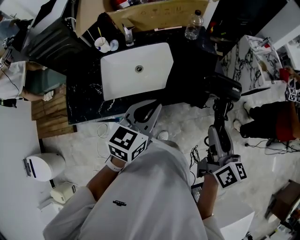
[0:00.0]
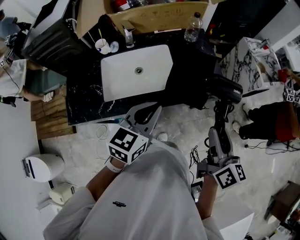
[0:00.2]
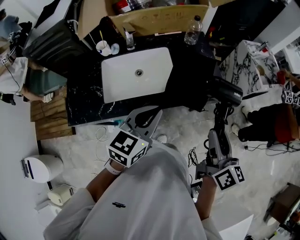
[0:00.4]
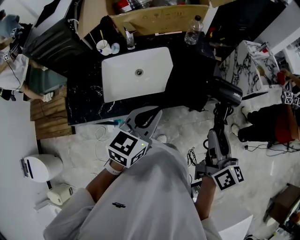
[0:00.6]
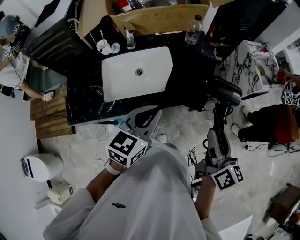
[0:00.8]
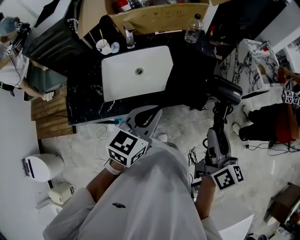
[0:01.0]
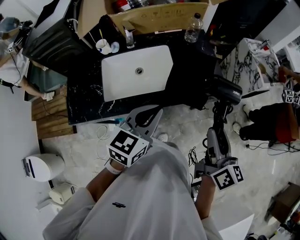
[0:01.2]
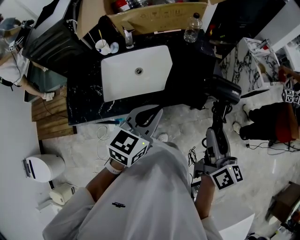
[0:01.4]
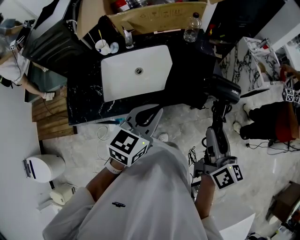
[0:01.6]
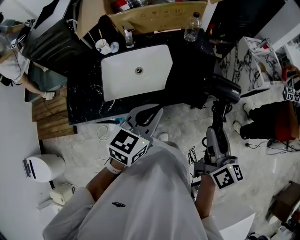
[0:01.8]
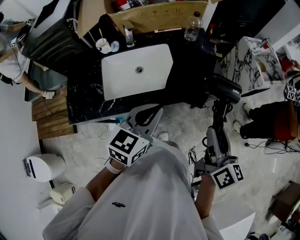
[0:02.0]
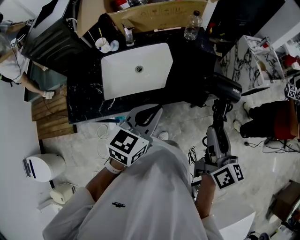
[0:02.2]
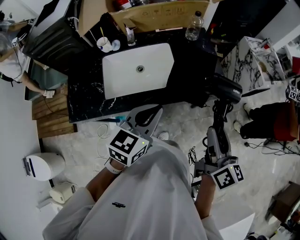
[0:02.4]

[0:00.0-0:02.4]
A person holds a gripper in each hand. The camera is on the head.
0:00.0 to 0:01.2: The grippers make only small movements.
0:01.2 to 0:02.4: Both grippers stay about where they are.

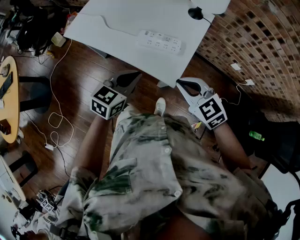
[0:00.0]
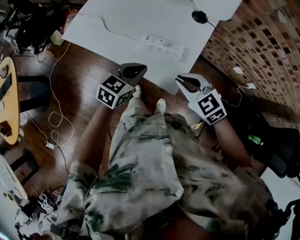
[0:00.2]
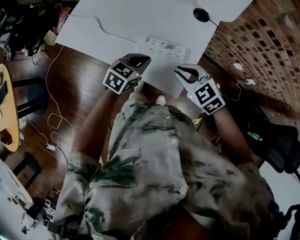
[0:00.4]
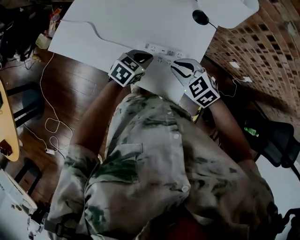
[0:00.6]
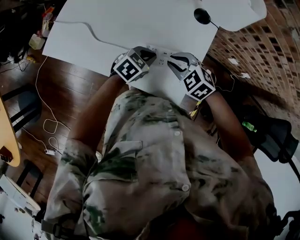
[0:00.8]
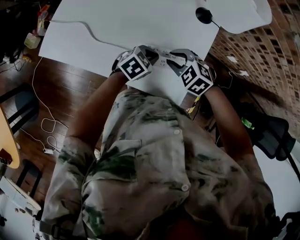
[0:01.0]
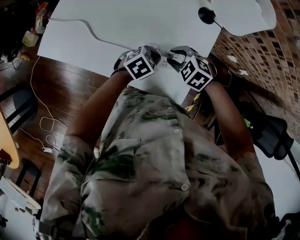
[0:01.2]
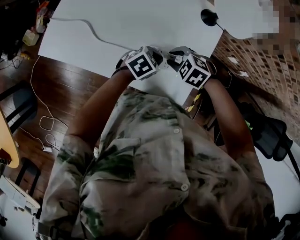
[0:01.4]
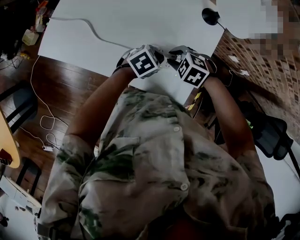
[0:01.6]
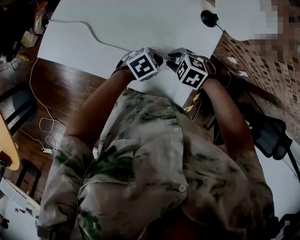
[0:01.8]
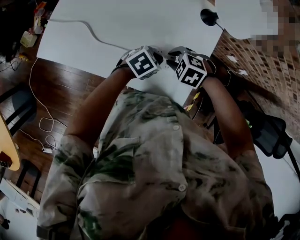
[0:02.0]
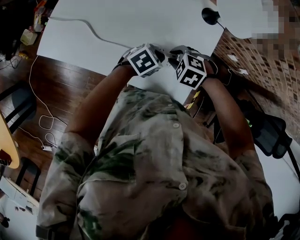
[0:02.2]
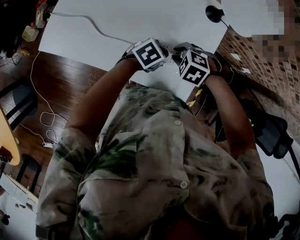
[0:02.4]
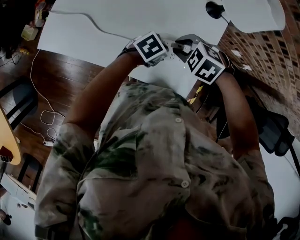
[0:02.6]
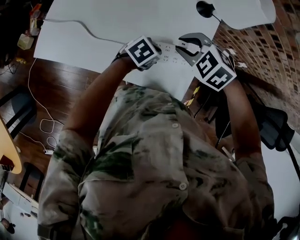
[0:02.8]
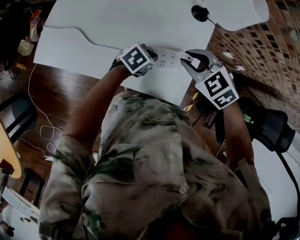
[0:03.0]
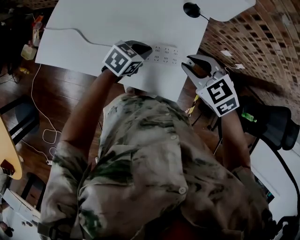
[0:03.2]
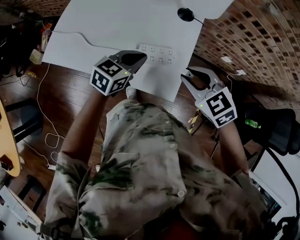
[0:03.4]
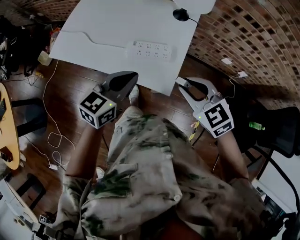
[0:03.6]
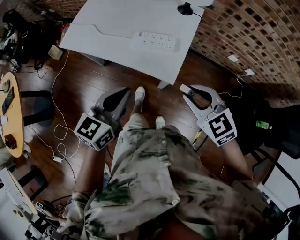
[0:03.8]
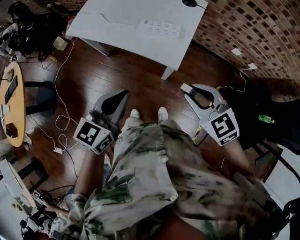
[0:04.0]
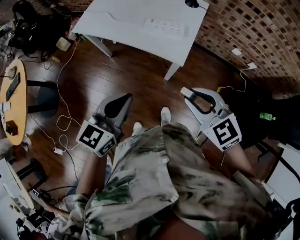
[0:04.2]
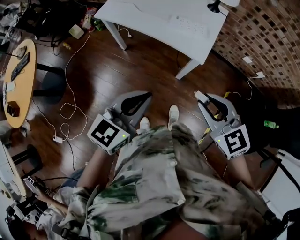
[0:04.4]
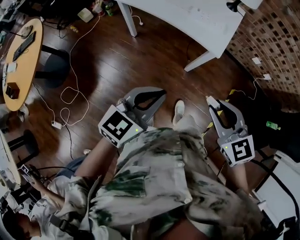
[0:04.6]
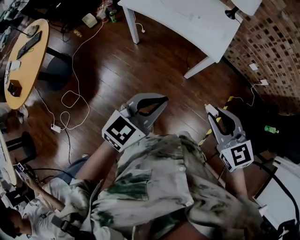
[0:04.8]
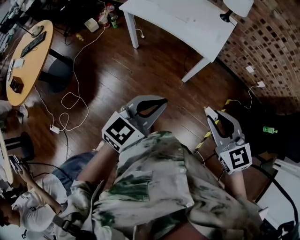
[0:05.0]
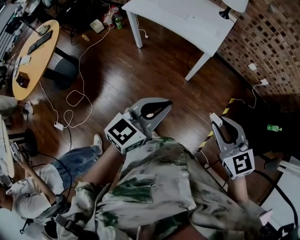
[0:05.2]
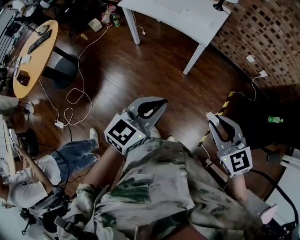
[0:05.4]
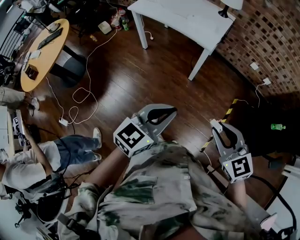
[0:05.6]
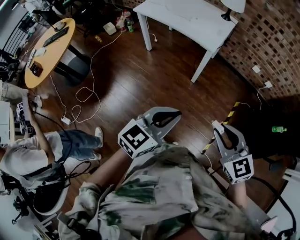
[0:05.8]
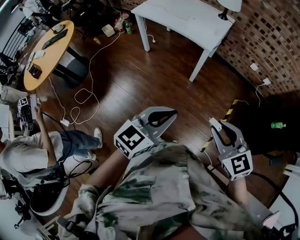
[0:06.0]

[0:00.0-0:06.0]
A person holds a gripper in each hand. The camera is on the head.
0:00.0 to 0:01.6: The right gripper moves some 30 cm, angles its fingers downward, by about 40 degrees, and opens up; the left gripper shifts by about 25 cm, and rotates about 40 degrees.
0:01.6 to 0:03.0: The right gripper travels upward by about 15 cm, and swivels roughly 20 degrees.
0:03.0 to 0:04.4: The two grippers travel together, approximately 40 cm. The left gripper swivels some 50 degrees, while the right gripper points its fingers approximately 30 degrees further upward.
0:04.4 to 0:06.0: Both grippers move backward, roughly 30 cm.

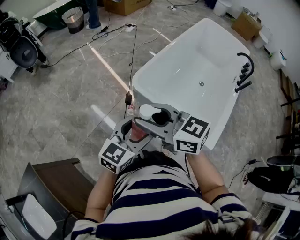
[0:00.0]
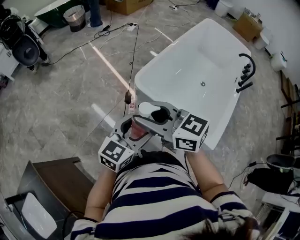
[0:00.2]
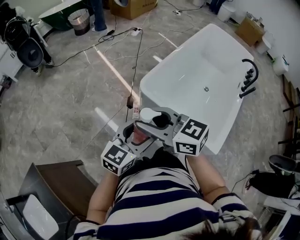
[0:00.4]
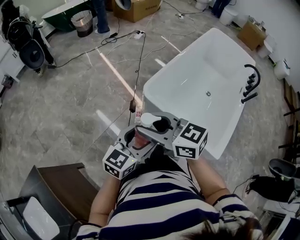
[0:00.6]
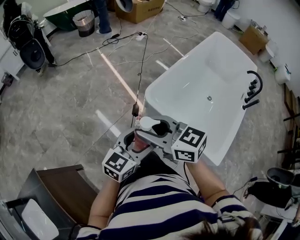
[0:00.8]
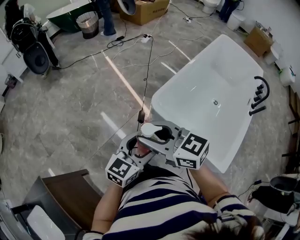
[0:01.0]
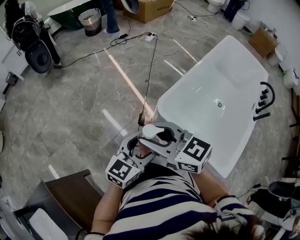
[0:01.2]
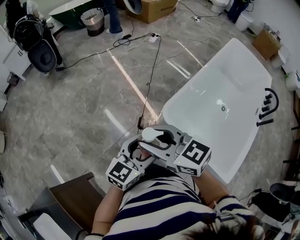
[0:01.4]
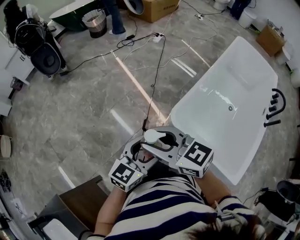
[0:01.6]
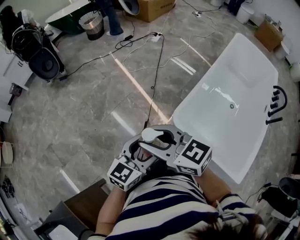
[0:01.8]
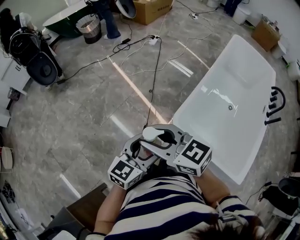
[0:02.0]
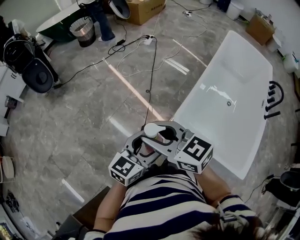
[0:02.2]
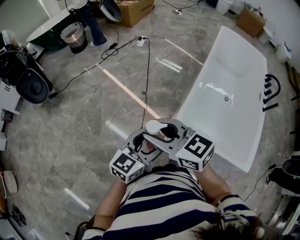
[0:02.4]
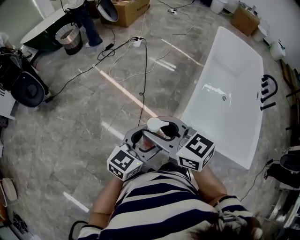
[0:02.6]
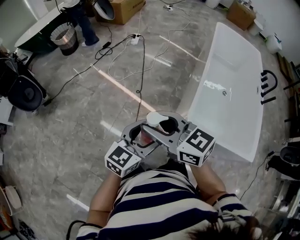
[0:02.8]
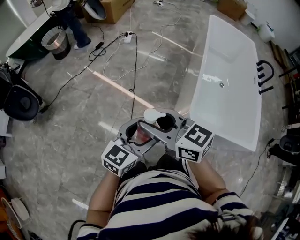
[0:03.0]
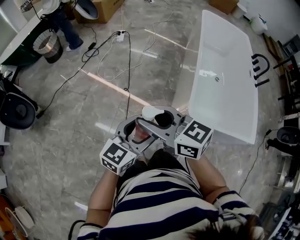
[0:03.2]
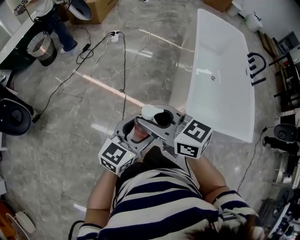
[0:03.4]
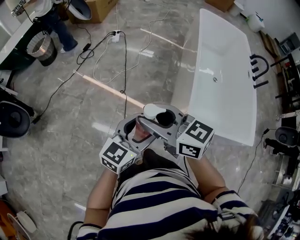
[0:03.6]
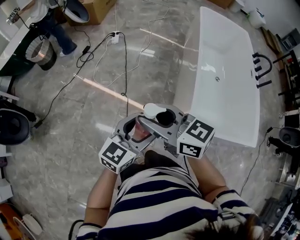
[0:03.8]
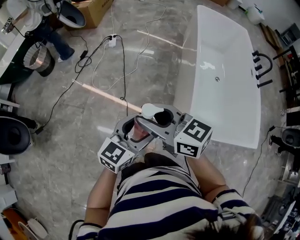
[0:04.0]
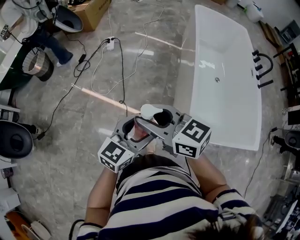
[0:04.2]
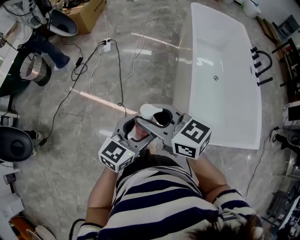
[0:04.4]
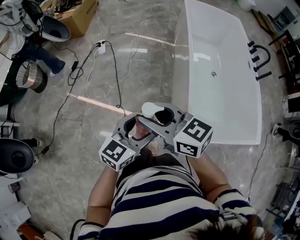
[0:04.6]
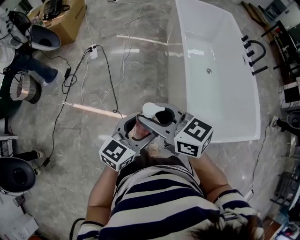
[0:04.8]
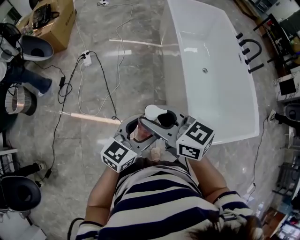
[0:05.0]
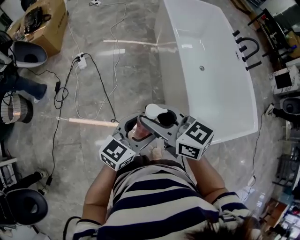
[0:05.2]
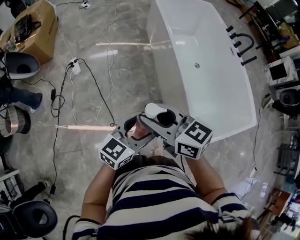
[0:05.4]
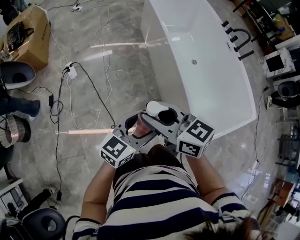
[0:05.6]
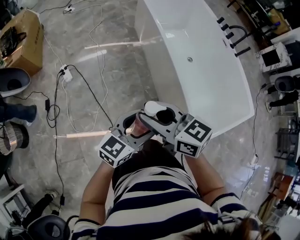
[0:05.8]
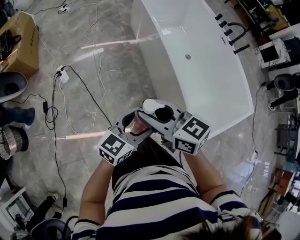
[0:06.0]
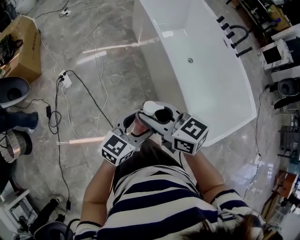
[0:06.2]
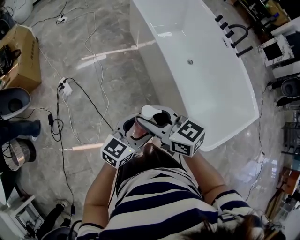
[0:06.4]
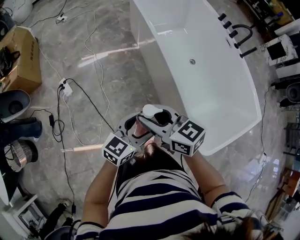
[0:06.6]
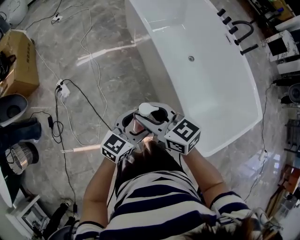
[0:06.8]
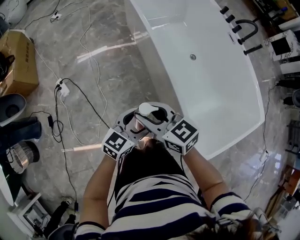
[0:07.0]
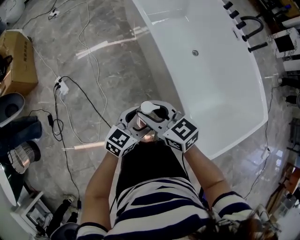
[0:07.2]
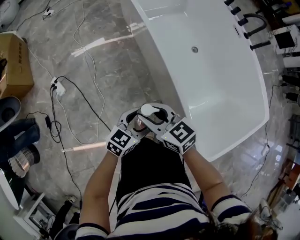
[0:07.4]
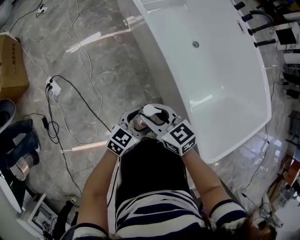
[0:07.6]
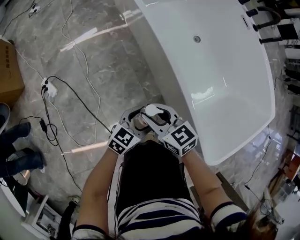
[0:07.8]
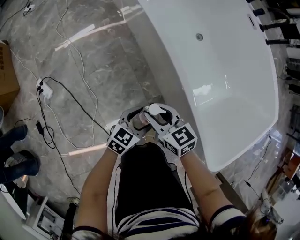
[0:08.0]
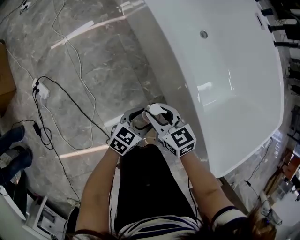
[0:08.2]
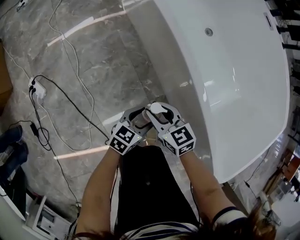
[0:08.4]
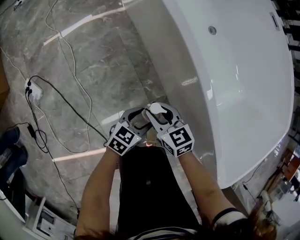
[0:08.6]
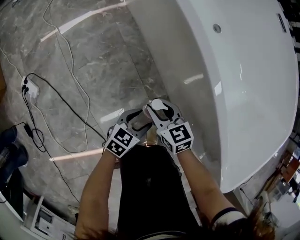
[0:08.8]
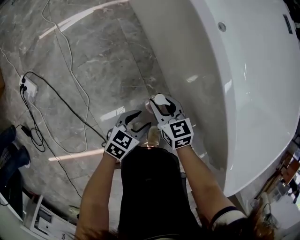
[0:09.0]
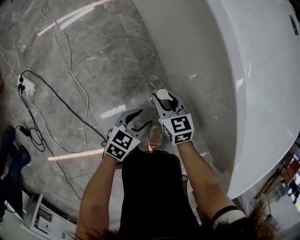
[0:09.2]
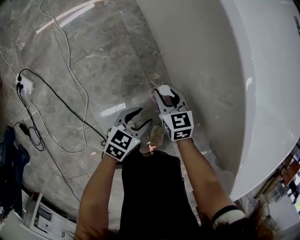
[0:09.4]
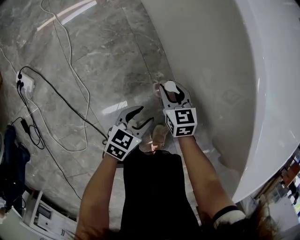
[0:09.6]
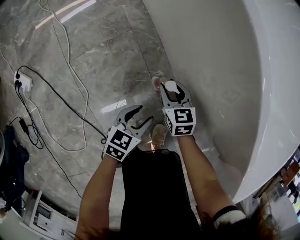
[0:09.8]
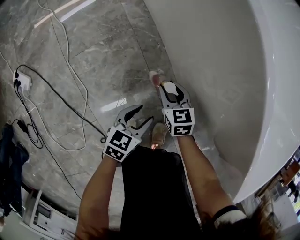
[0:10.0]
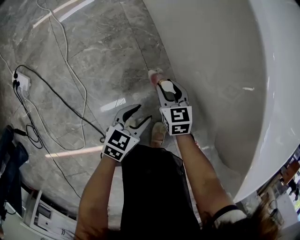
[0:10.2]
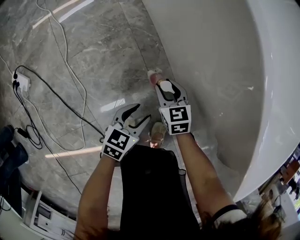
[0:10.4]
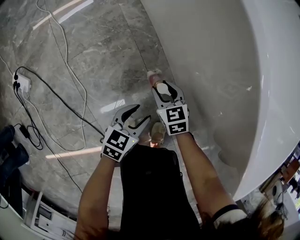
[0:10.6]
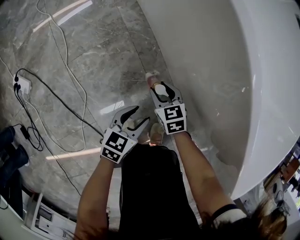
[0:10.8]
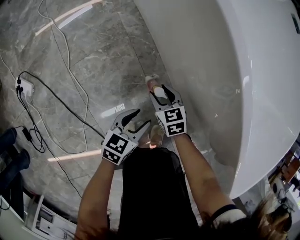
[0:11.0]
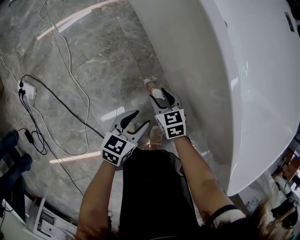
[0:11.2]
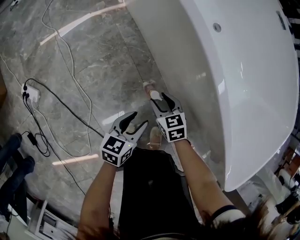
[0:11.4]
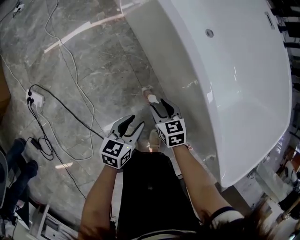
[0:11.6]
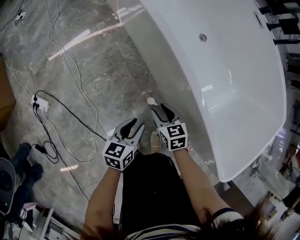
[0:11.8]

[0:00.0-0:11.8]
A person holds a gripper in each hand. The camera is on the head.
0:00.0 to 0:01.4: Both grippers travel together forward and to the left, approximately 20 cm.
0:01.4 to 0:03.0: The left gripper changes place by approximately 30 cm, and changes its angle by some 30 degrees; the right gripper changes place by roughly 30 cm, and swivels some 30 degrees.
0:03.0 to 0:04.4: Both grippers move forward, some 20 cm.
0:04.4 to 0:06.0: The left gripper shifts by some 25 cm, and changes its angle by some 30 degrees, while the right gripper changes place by approximately 25 cm, and turns by some 30 degrees.
0:06.0 to 0:07.4: The left gripper is displaced downward and forward by approximately 25 cm; the right gripper travels forward and downward by approximately 25 cm.
0:07.4 to 0:08.8: The grippers both shift downward by some 35 cm. The right gripper rotates about 20 degrees.
0:08.8 to 0:10.4: The left gripper travels downward by some 5 cm; the right gripper goes about 15 cm downward.
0:10.4 to 0:11.8: The grippers both shift upward by about 20 cm.

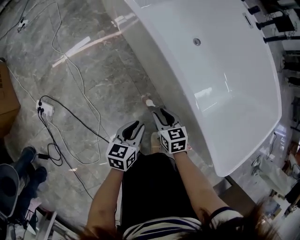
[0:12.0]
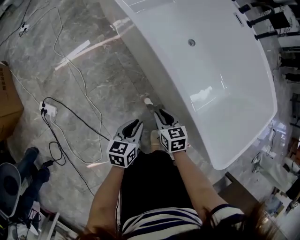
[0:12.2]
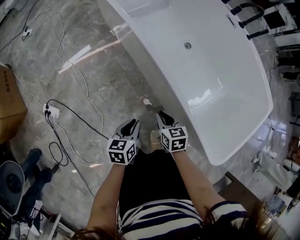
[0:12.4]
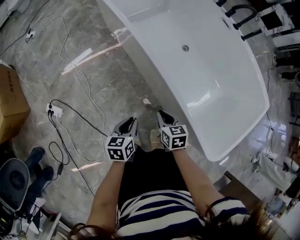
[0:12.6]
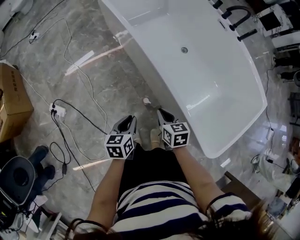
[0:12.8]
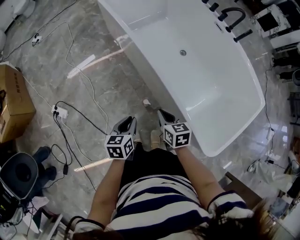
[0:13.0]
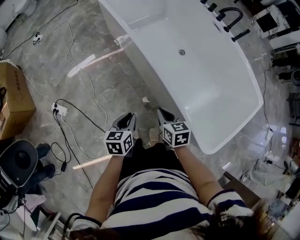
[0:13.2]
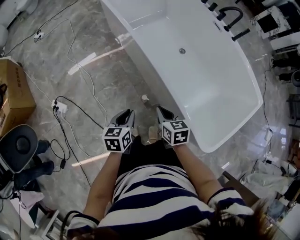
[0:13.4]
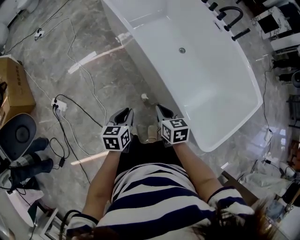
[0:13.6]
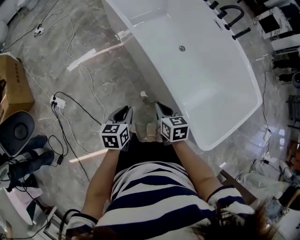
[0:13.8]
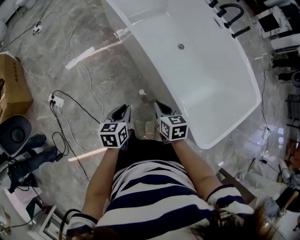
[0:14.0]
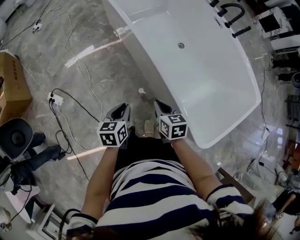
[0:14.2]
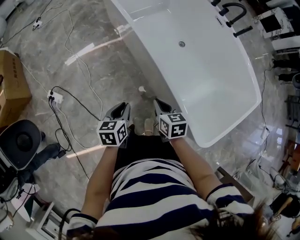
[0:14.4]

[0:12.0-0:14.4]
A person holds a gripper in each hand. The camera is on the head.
0:12.0 to 0:13.2: Both grippers move upward, approximately 20 cm. The right gripper closes up.
0:13.2 to 0:14.4: The two grippers keep their place.

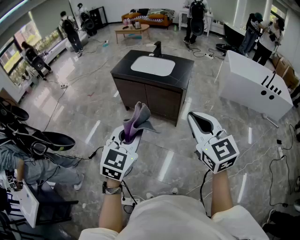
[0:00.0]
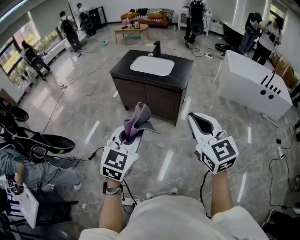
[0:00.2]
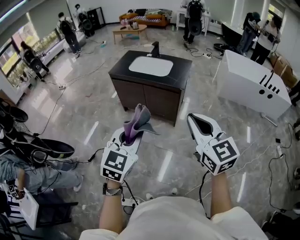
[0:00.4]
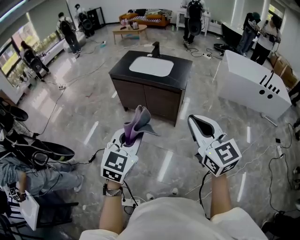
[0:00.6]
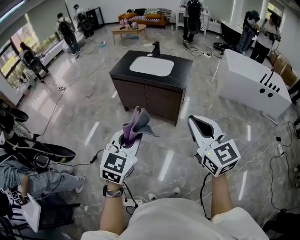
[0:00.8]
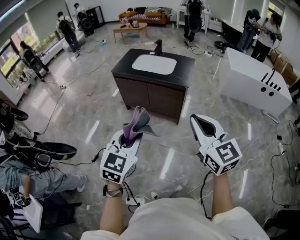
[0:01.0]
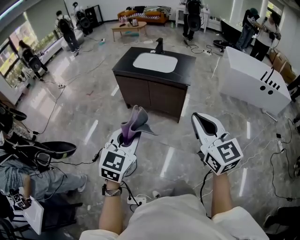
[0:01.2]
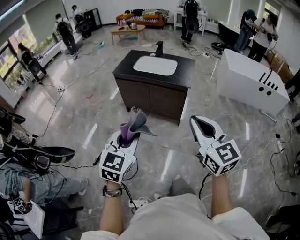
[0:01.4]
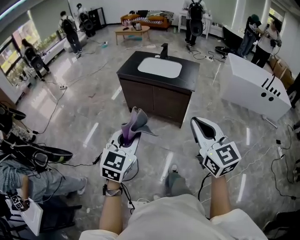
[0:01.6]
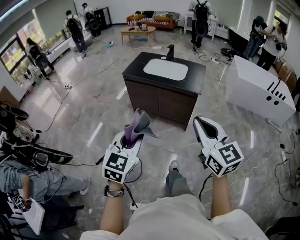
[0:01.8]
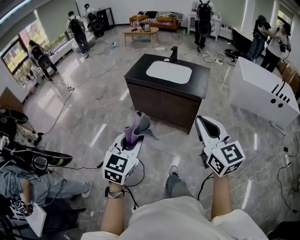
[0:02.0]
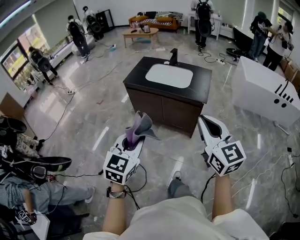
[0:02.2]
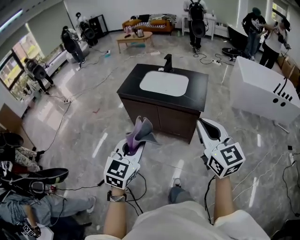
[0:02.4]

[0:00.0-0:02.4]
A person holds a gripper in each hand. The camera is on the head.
0:00.0 to 0:01.2: The two grippers go roughly 5 cm to the left.
0:01.2 to 0:02.4: Both grippers move forward, some 20 cm.
